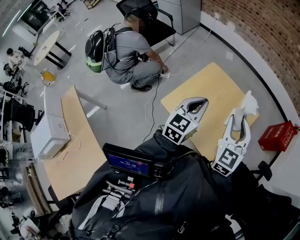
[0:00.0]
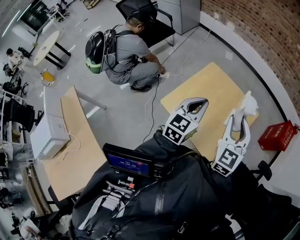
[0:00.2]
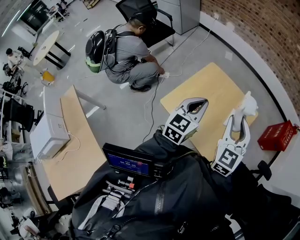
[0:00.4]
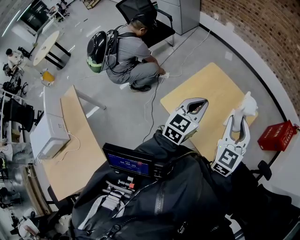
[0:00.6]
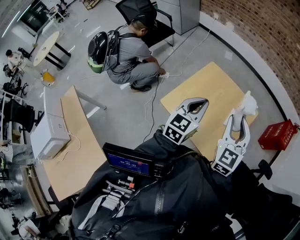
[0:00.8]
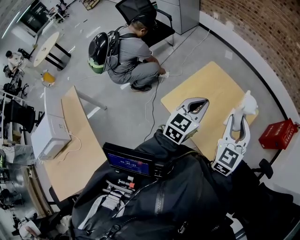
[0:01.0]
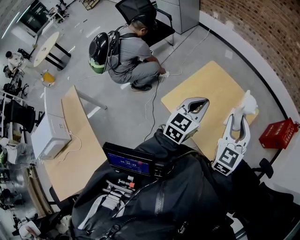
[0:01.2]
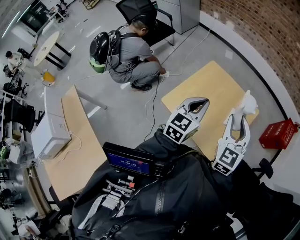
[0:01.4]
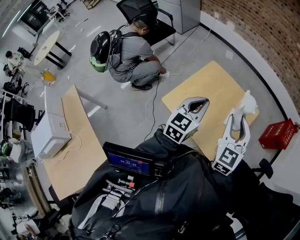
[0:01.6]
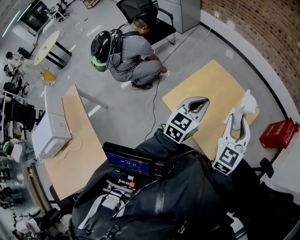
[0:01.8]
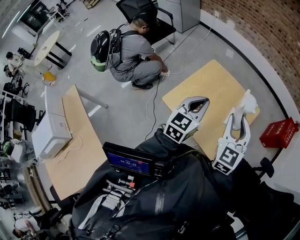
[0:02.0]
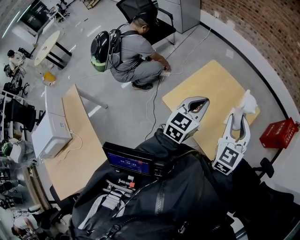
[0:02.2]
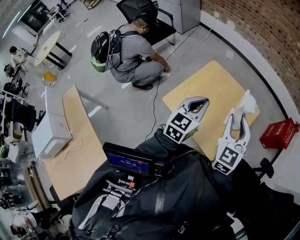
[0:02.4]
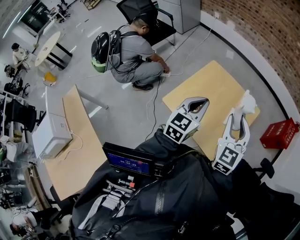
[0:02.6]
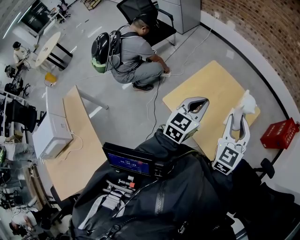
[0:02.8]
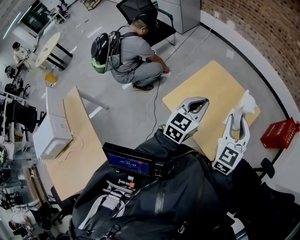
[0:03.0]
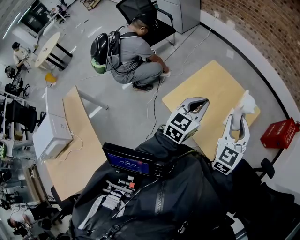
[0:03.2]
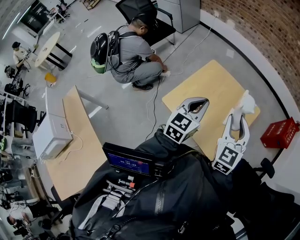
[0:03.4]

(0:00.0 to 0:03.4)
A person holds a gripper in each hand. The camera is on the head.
0:00.0 - 0:01.6: The two grippers keep their place.
0:01.6 - 0:03.4: Both grippers stay put.

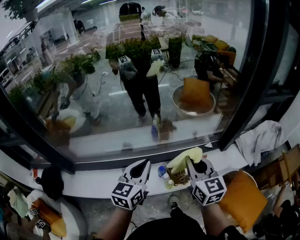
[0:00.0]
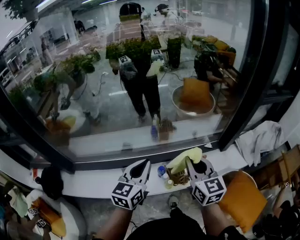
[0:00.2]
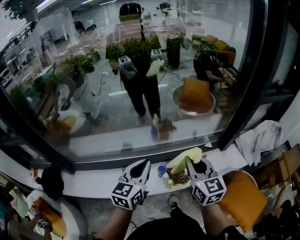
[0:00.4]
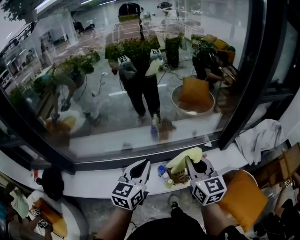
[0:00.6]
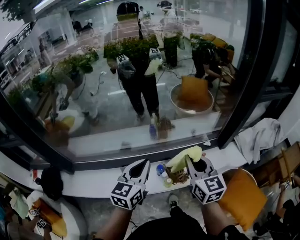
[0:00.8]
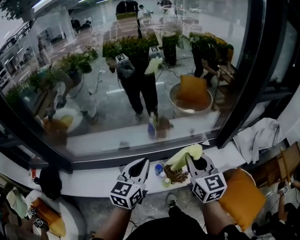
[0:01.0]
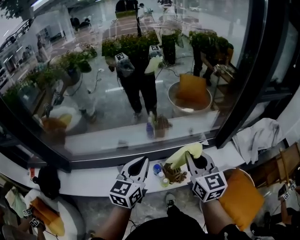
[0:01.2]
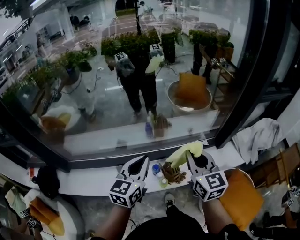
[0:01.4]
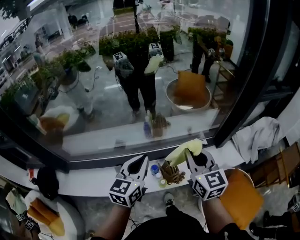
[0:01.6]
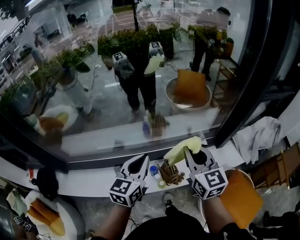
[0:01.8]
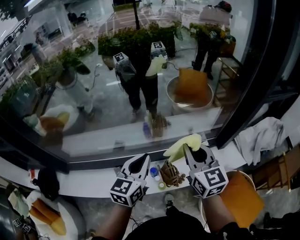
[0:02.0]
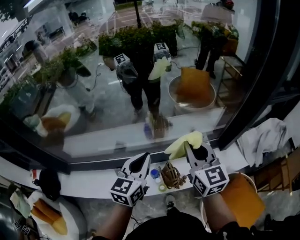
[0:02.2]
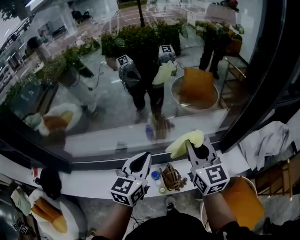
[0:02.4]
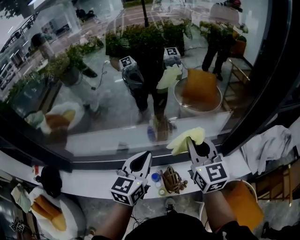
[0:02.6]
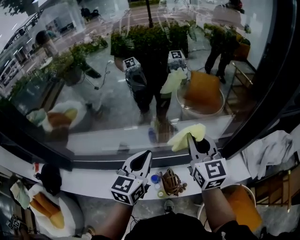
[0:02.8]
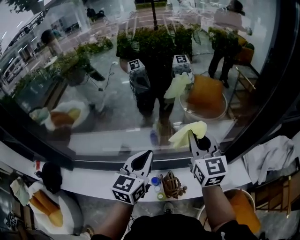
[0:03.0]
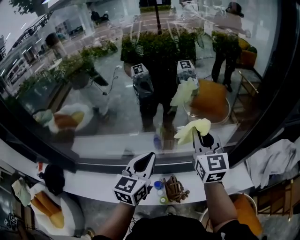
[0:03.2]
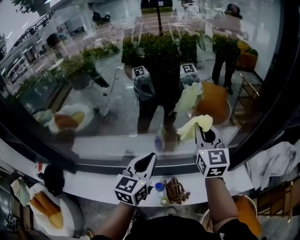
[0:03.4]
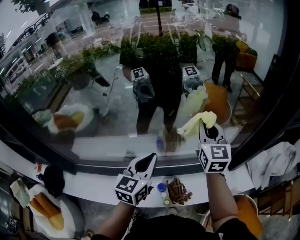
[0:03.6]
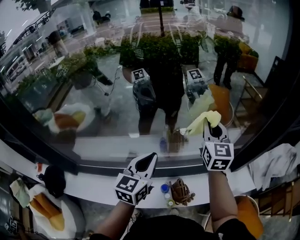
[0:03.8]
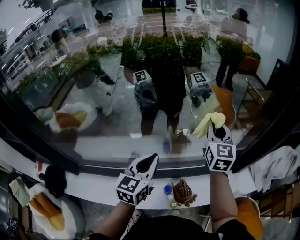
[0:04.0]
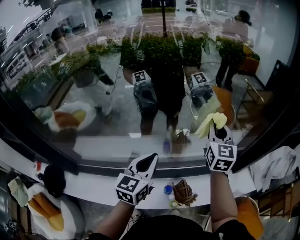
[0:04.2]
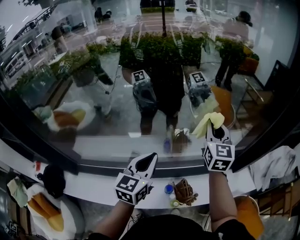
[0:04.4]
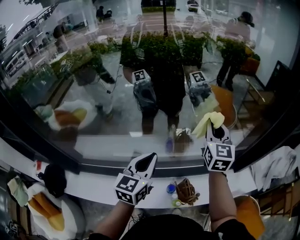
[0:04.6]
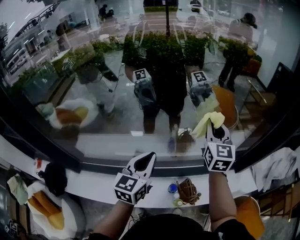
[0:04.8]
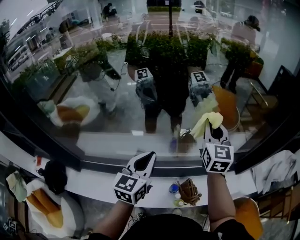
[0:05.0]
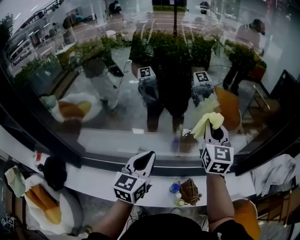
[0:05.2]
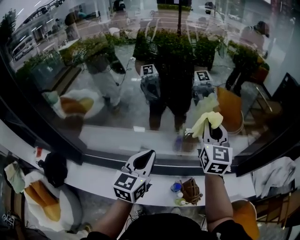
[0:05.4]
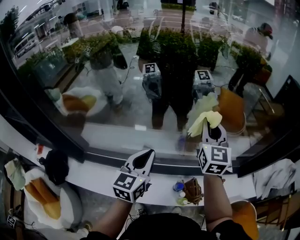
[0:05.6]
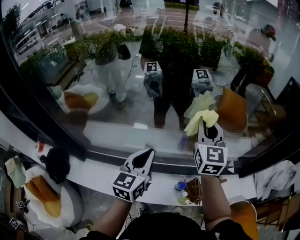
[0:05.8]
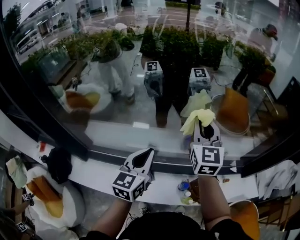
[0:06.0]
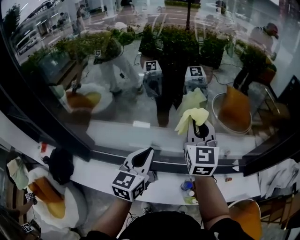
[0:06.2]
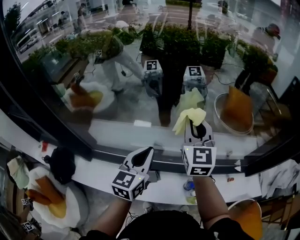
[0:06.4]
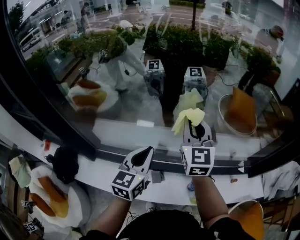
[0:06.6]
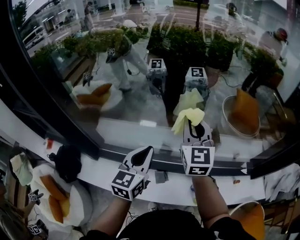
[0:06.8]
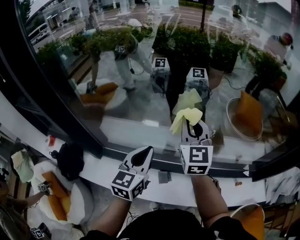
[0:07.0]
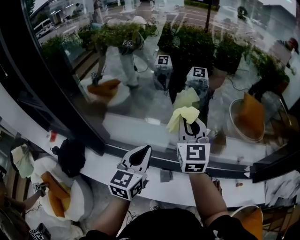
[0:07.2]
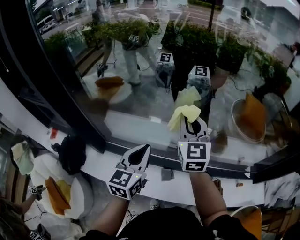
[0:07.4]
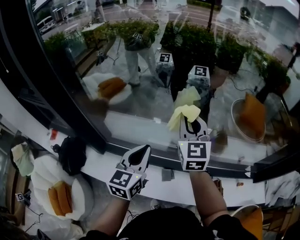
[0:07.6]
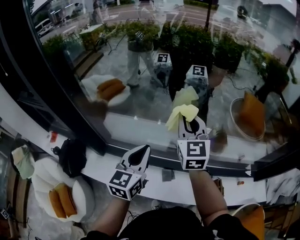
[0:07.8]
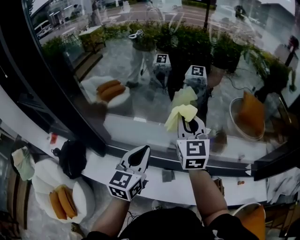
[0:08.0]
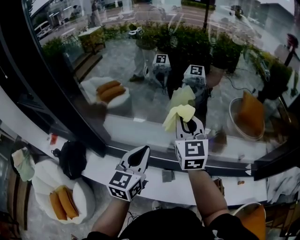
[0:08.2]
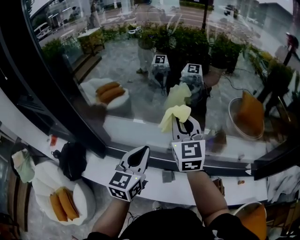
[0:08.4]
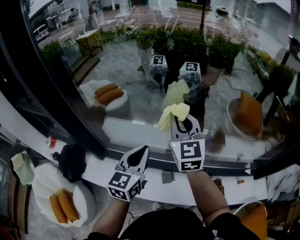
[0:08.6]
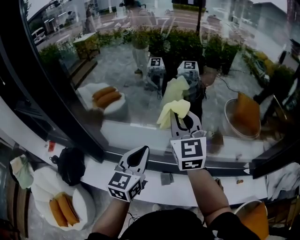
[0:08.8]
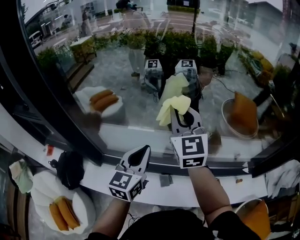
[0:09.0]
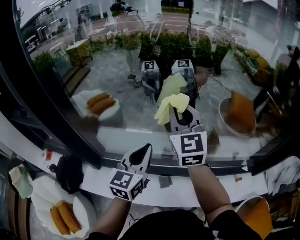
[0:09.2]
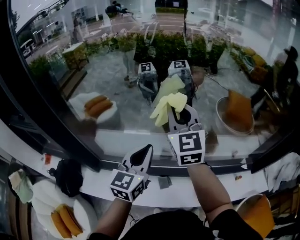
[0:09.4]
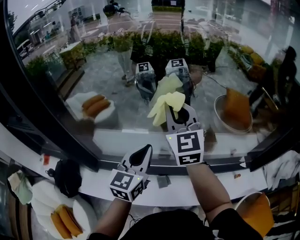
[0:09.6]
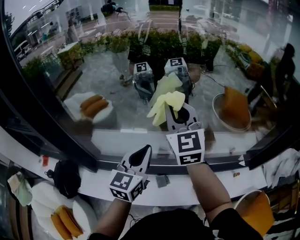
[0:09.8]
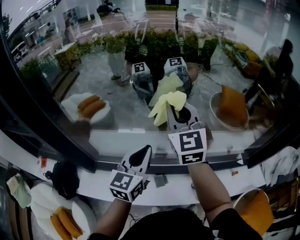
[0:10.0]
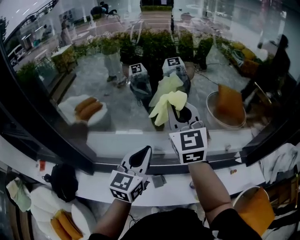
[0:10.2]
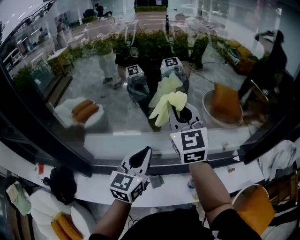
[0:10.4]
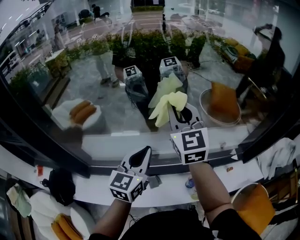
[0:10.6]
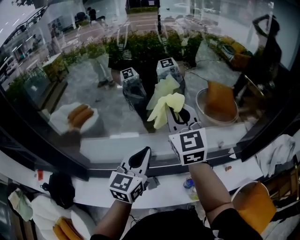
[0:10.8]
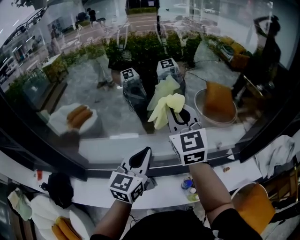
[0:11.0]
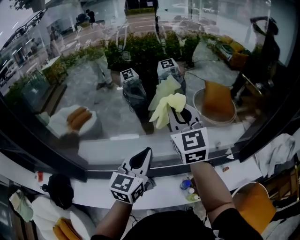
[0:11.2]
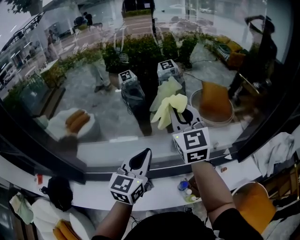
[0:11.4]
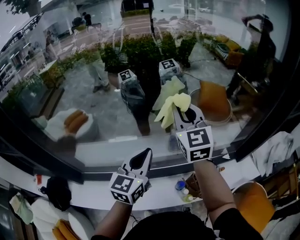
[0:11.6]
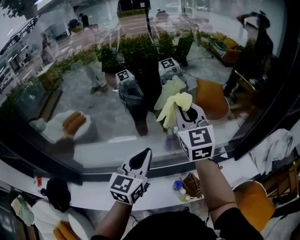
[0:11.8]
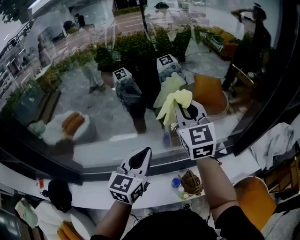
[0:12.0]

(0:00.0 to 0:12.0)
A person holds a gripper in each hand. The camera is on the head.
0:00.0 - 0:01.6: The left gripper moves some 5 cm. The right gripper travels forward by some 5 cm.
0:01.6 - 0:03.0: Both grippers travel together forward, roughly 15 cm.
0:03.0 - 0:04.4: The left gripper is displaced to the left by roughly 10 cm; the right gripper goes roughly 10 cm forward and to the left.
0:04.4 - 0:06.0: The grippers both shift to the left by some 20 cm.
0:06.0 - 0:07.6: Both grippers travel together to the left, some 20 cm.
0:07.6 - 0:09.0: The right gripper moves upward, about 10 cm.
0:09.0 - 0:10.4: The two grippers go roughly 5 cm to the right.
0:10.4 - 0:12.0: Both grippers travel together to the right, some 25 cm.

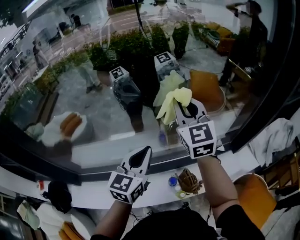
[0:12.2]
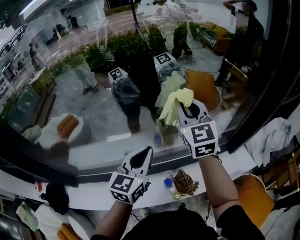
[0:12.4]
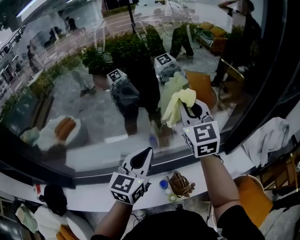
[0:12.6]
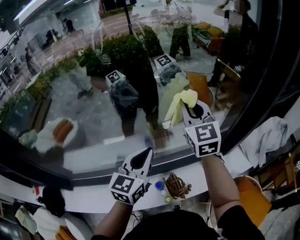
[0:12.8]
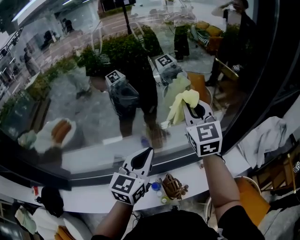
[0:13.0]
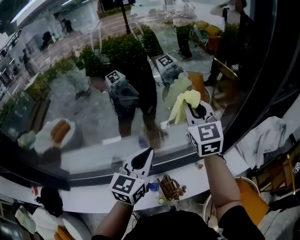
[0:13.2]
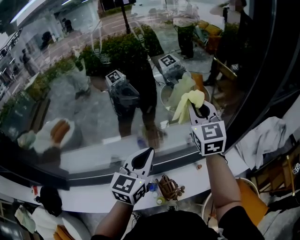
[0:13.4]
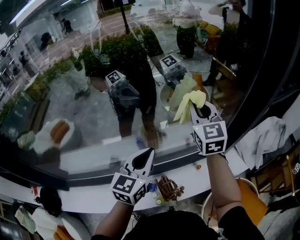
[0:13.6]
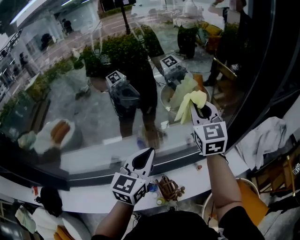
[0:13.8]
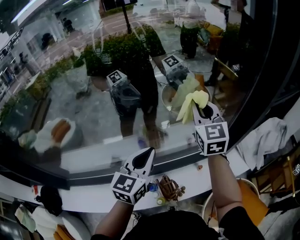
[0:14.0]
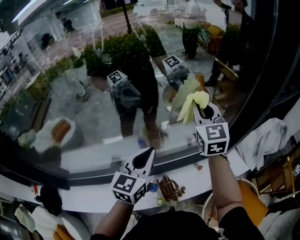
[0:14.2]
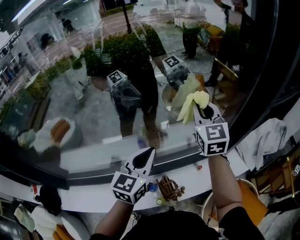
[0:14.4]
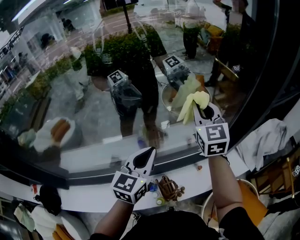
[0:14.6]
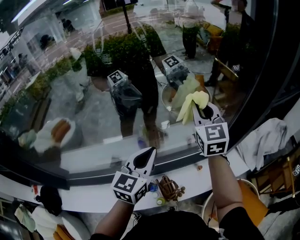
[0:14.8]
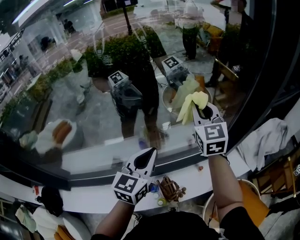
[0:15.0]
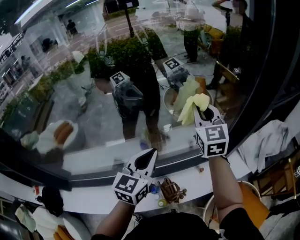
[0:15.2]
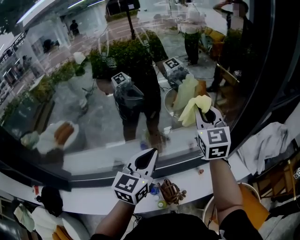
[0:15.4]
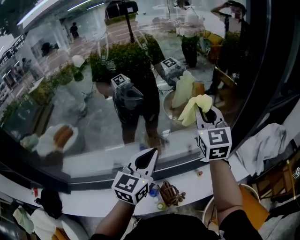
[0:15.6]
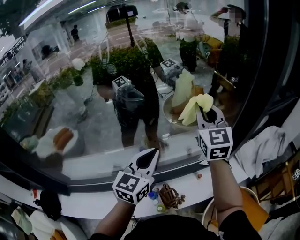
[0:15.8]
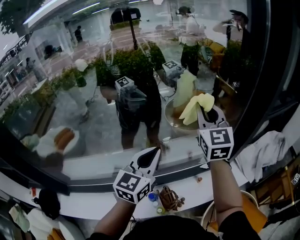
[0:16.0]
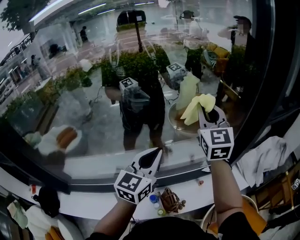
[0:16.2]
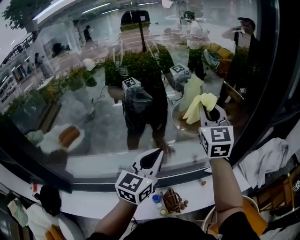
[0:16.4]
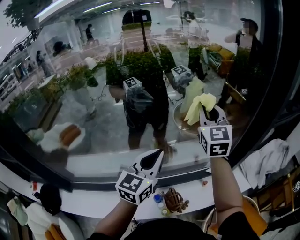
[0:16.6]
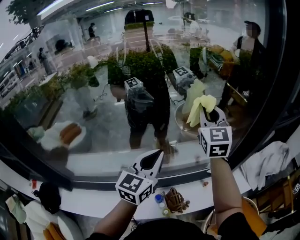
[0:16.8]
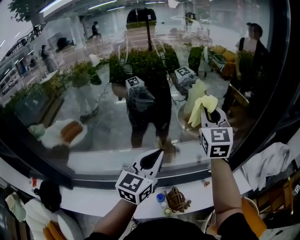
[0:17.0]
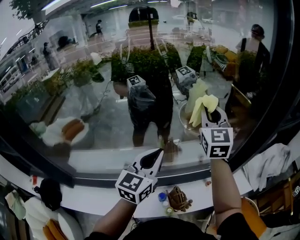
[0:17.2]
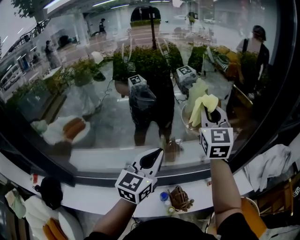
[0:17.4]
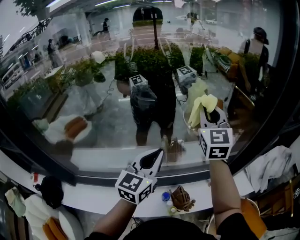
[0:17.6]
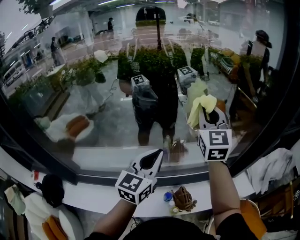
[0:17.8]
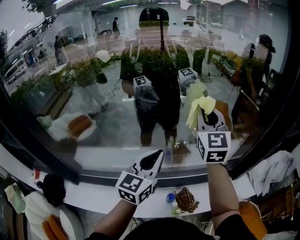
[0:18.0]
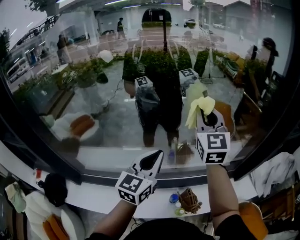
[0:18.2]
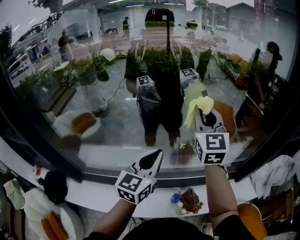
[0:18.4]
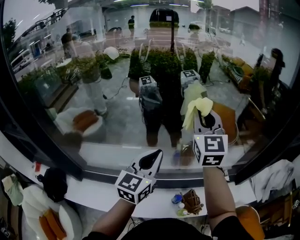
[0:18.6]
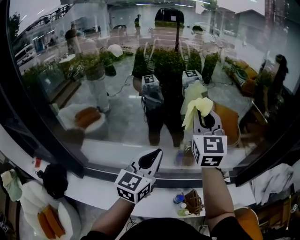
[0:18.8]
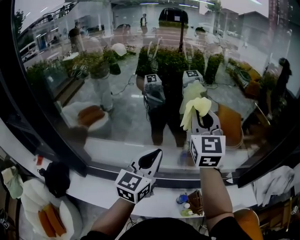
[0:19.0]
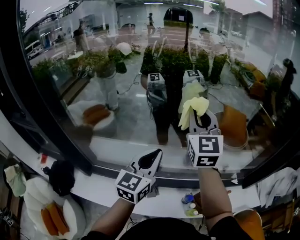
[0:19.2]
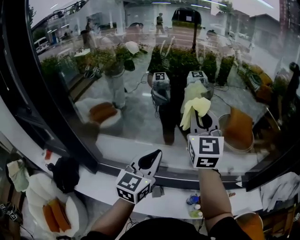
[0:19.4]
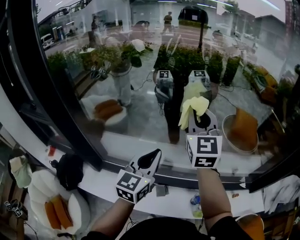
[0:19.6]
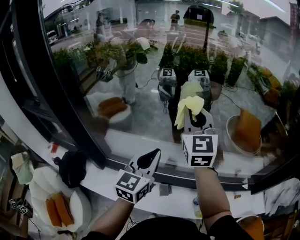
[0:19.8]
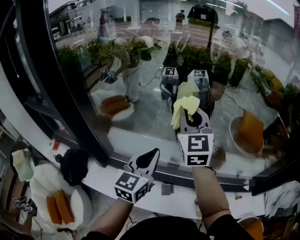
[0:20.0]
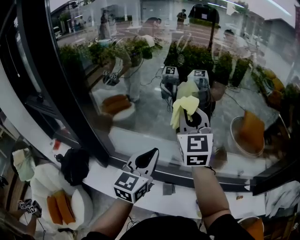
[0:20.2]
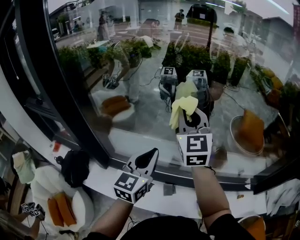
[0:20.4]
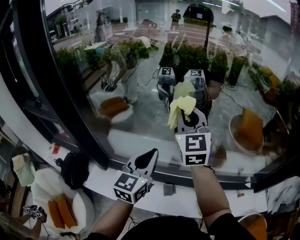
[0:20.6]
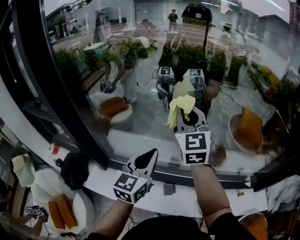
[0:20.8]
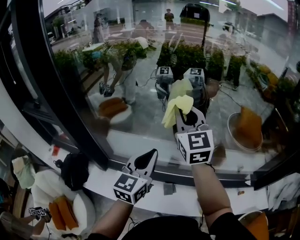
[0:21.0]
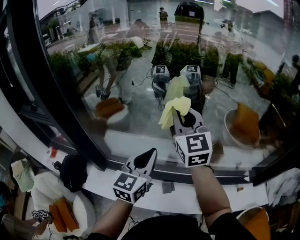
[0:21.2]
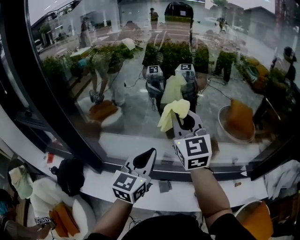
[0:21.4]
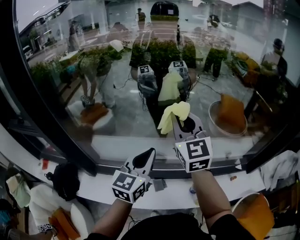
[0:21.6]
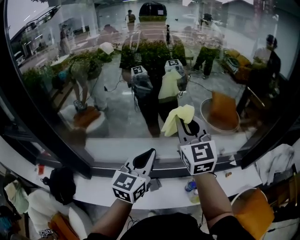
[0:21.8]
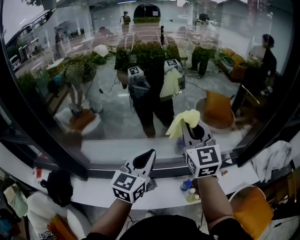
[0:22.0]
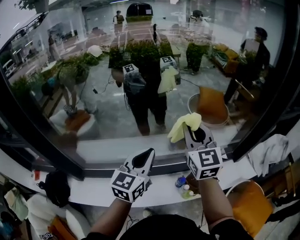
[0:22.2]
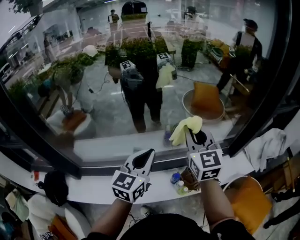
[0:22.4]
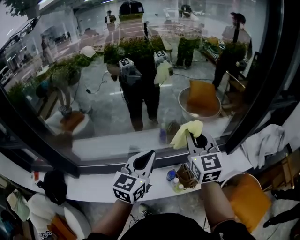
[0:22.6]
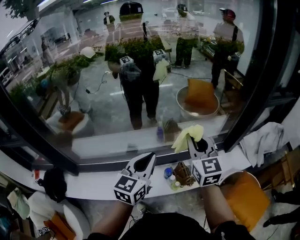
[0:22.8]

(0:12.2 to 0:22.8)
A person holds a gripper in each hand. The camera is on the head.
0:12.2 - 0:13.8: Both grippers travel together to the right, approximately 20 cm.
0:13.8 - 0:15.2: The two grippers keep their place.
0:15.2 - 0:16.8: Both grippers travel together upward, roughly 5 cm.
0:16.8 - 0:18.2: The grippers both shift to the left by some 20 cm.
0:18.2 - 0:19.8: The two grippers go approximately 35 cm to the left.
0:19.8 - 0:21.2: The right gripper ends up roughly 5 cm from where it was.
0:21.2 - 0:22.8: Both grippers travel together to the right, about 40 cm. The right gripper swivels roughly 20 degrees.
